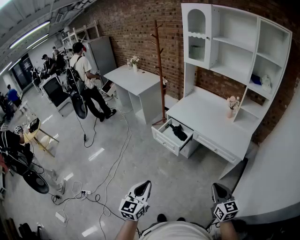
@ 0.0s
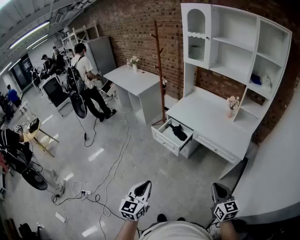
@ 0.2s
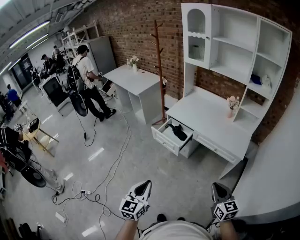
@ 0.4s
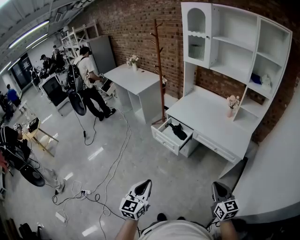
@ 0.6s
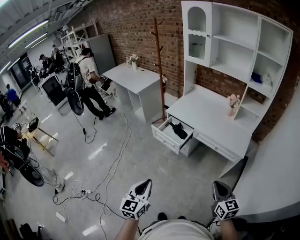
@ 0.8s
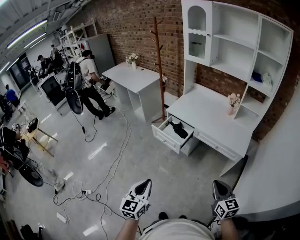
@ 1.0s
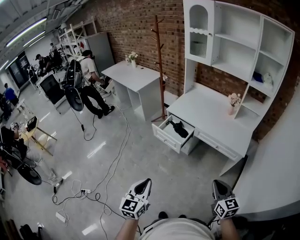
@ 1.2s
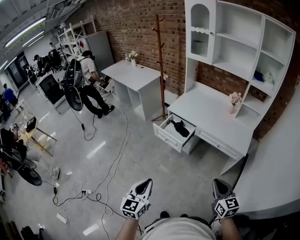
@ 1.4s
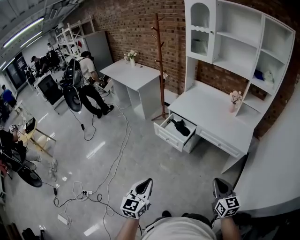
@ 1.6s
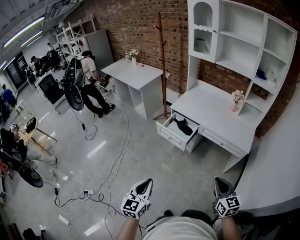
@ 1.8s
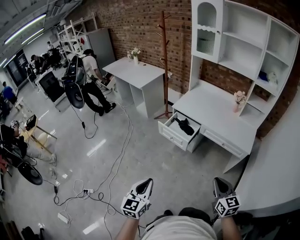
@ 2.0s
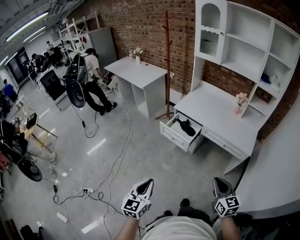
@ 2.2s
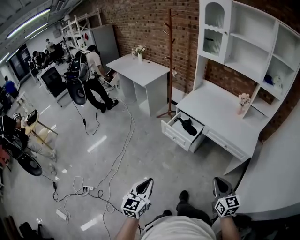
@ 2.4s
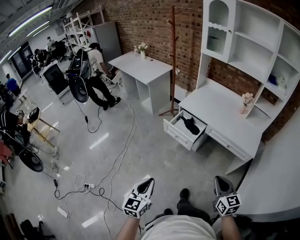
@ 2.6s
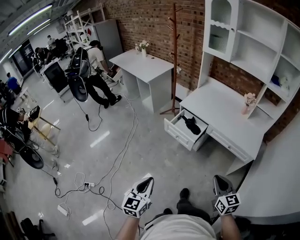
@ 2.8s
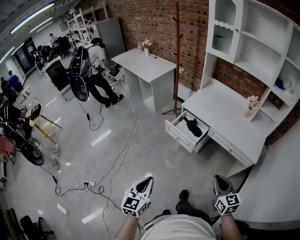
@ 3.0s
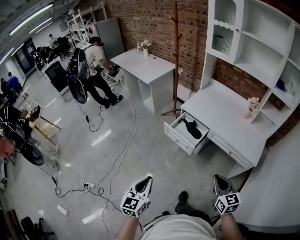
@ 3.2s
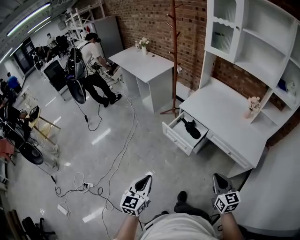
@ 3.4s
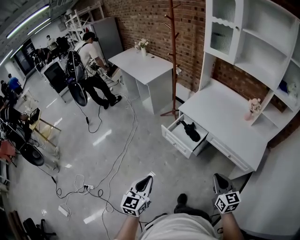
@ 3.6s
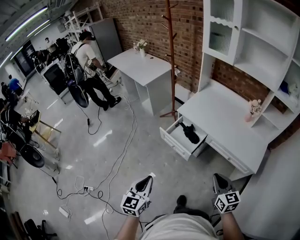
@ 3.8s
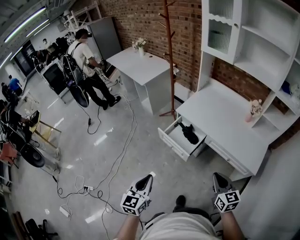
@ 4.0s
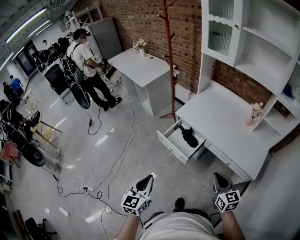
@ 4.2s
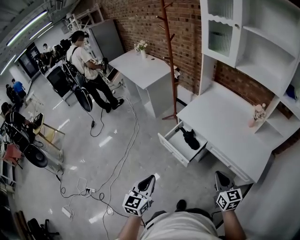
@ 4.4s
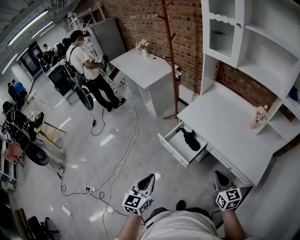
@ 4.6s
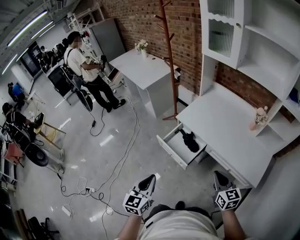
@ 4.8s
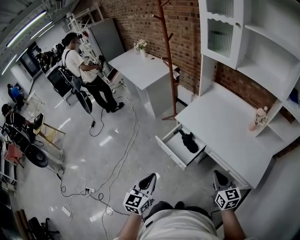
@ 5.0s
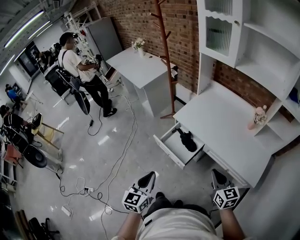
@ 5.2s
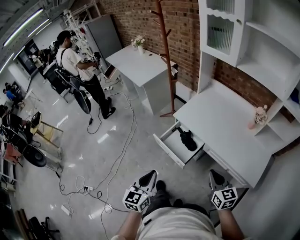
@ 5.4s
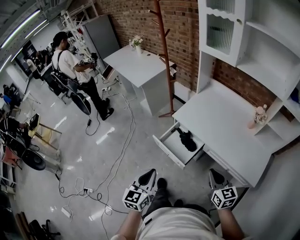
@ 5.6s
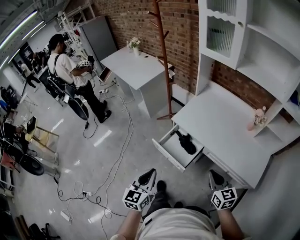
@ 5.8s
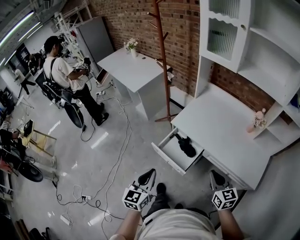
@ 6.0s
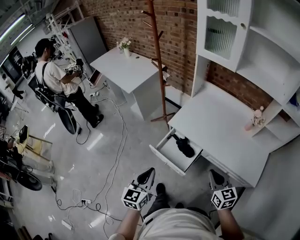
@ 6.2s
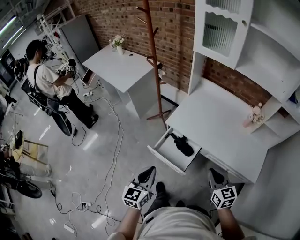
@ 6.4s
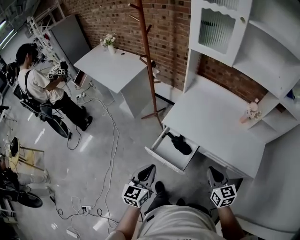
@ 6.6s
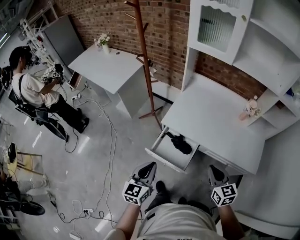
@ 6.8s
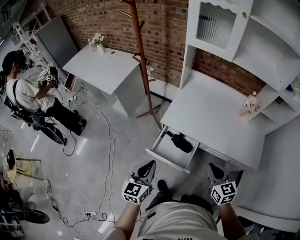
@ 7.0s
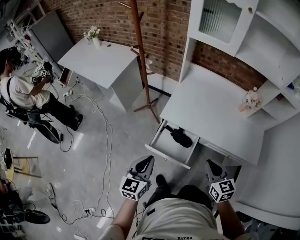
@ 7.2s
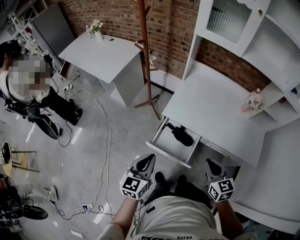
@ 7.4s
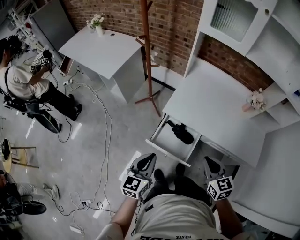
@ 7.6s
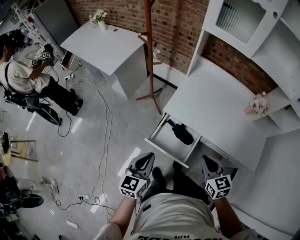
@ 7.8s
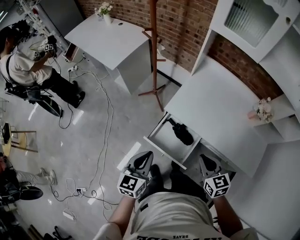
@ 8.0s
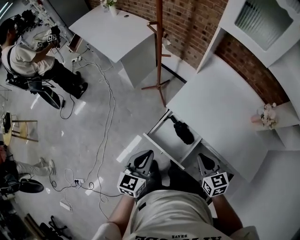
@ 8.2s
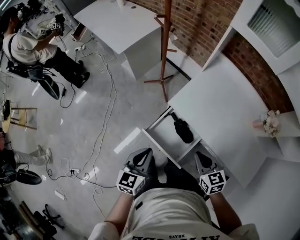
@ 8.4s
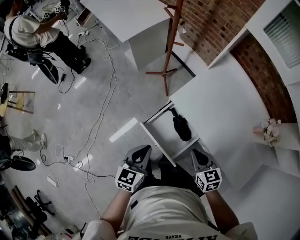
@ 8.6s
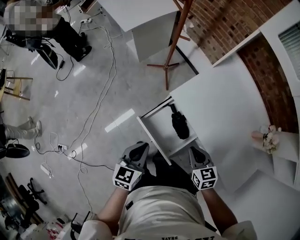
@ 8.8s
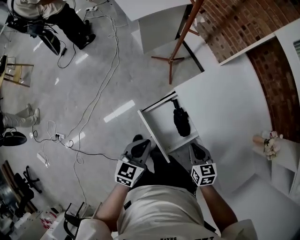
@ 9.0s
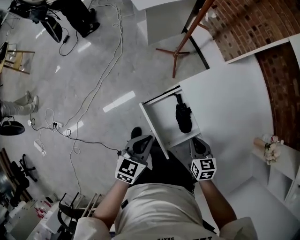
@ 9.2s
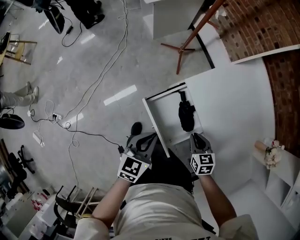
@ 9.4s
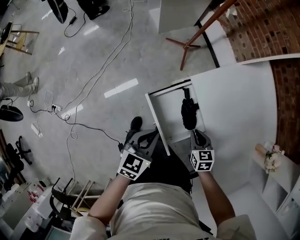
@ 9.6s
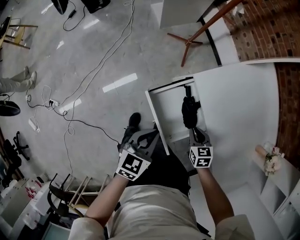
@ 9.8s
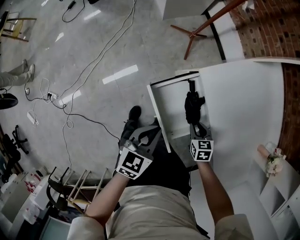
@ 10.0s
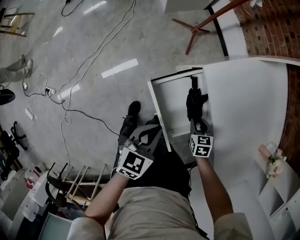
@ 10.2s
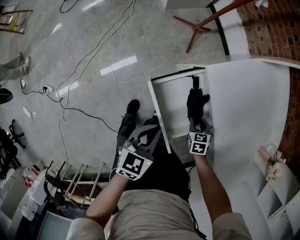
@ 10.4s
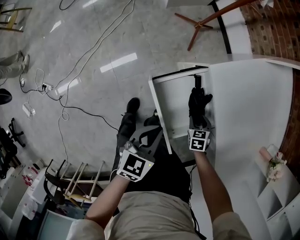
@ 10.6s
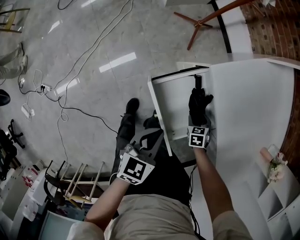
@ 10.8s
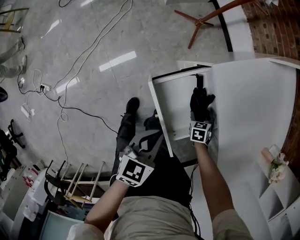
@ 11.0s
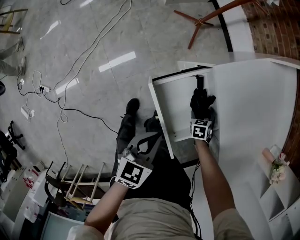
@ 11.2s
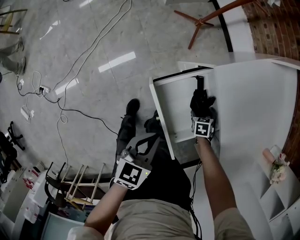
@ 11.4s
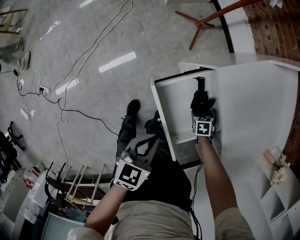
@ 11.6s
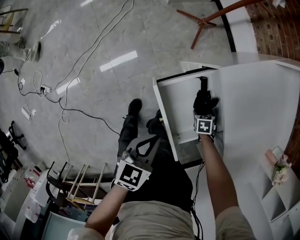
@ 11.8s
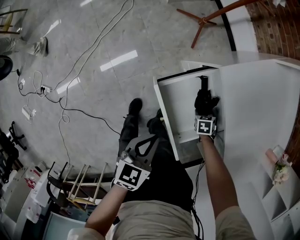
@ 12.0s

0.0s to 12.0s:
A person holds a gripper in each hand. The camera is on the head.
0.0s to 1.6s: The two grippers go roughly 5 cm to the left.
1.6s to 3.0s: The left gripper is displaced to the left by about 5 cm. The right gripper travels forward and to the left by approximately 10 cm.
3.0s to 4.4s: The two grippers go some 20 cm forward and to the right.
4.4s to 6.0s: Both grippers travel together forward, approximately 10 cm.
6.0s to 7.6s: The left gripper goes about 15 cm forward and to the left, while the right gripper is displaced to the left and forward by some 15 cm.
7.6s to 9.0s: The grippers both shift downward by approximately 15 cm. The left gripper rotates roughly 30 degrees, while the right gripper rotates some 30 degrees.
9.0s to 10.4s: The left gripper shifts some 10 cm downward, while the right gripper moves downward, roughly 25 cm, and swivels about 20 degrees.
10.4s to 12.0s: The left gripper shifts by approximately 5 cm. The right gripper travels downward by some 10 cm, and opens.

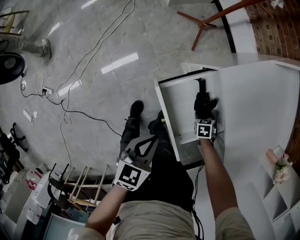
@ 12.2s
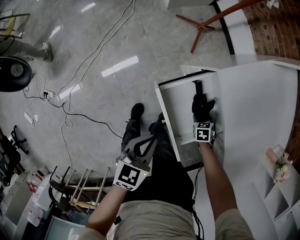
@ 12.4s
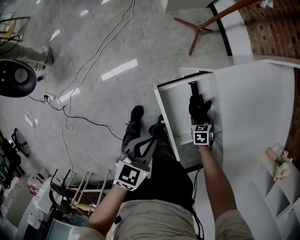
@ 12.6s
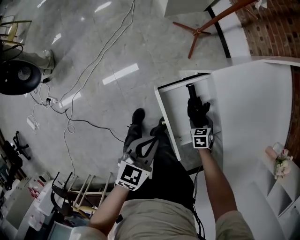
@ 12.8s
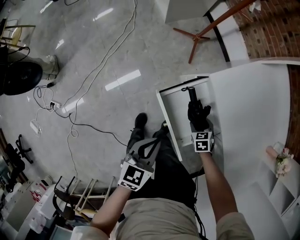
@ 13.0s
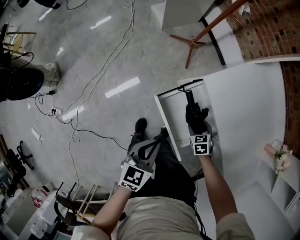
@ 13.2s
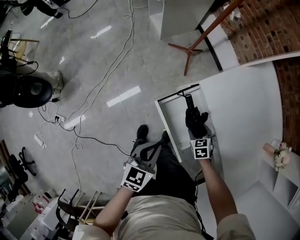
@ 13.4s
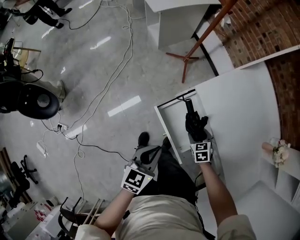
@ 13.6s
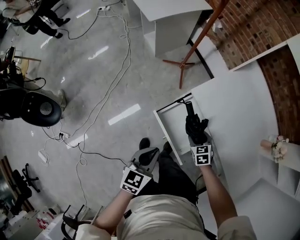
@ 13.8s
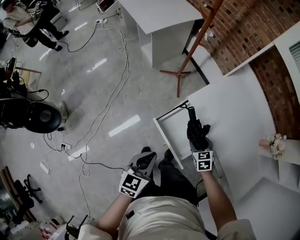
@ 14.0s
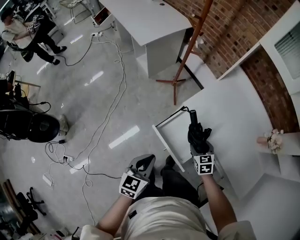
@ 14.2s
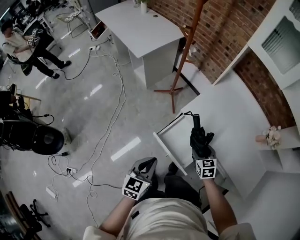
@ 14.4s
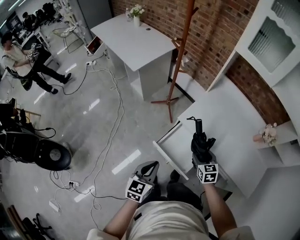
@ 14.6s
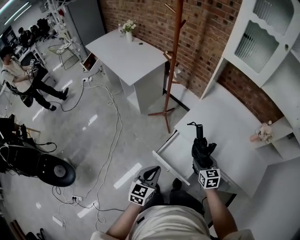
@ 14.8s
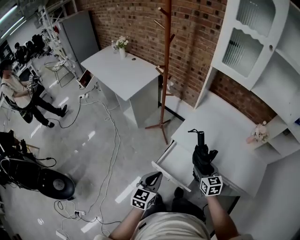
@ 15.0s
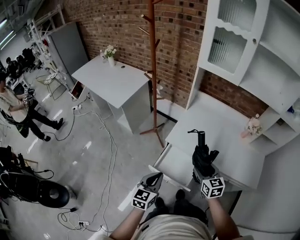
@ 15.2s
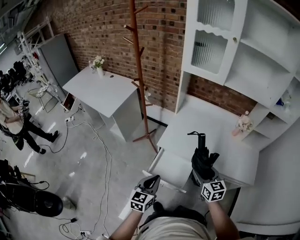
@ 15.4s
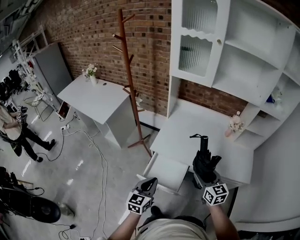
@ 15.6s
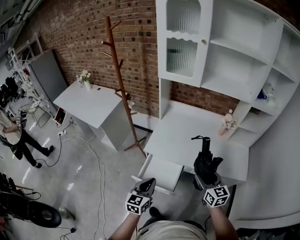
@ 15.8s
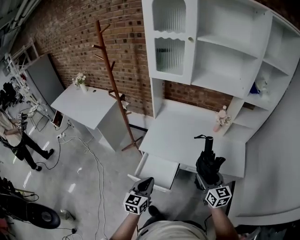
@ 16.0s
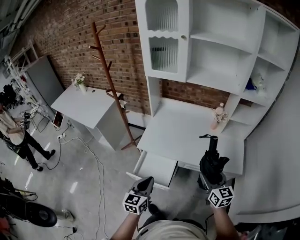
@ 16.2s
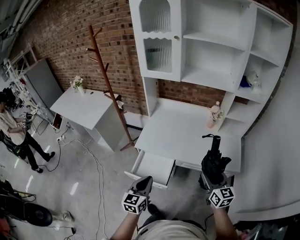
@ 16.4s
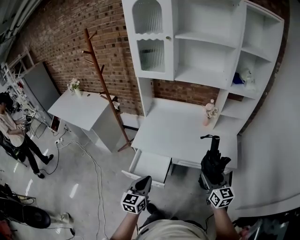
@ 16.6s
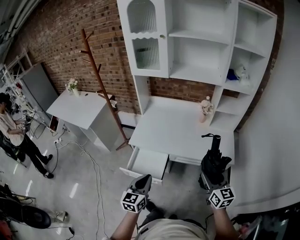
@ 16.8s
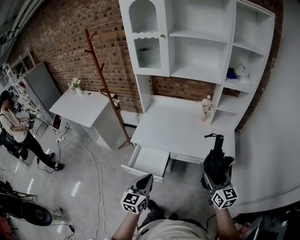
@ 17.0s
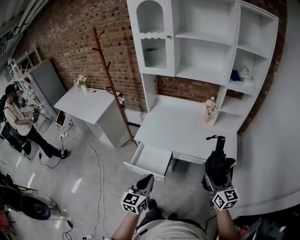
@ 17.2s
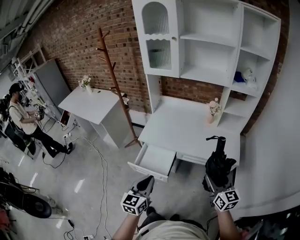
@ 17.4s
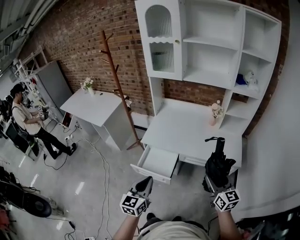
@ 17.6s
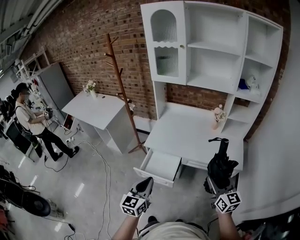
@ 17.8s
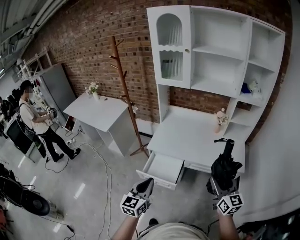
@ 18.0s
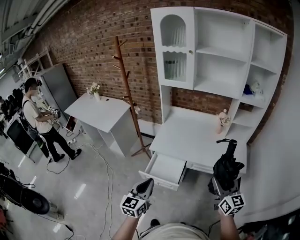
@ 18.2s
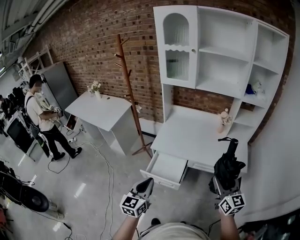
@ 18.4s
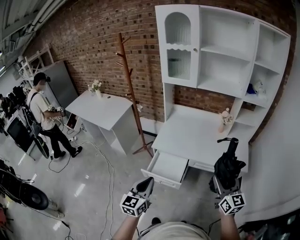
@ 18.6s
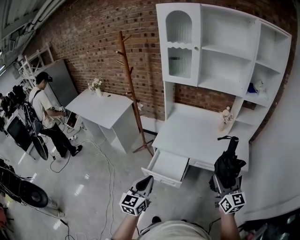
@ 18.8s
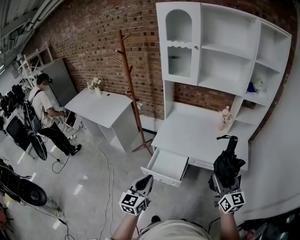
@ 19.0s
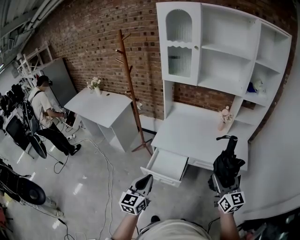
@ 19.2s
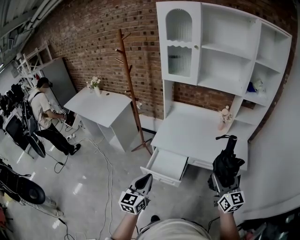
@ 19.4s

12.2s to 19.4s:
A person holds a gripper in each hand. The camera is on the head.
12.2s to 13.6s: The left gripper shifts roughly 10 cm upward, while the right gripper travels upward by some 20 cm, and rotates some 20 degrees.
13.6s to 15.0s: The left gripper moves upward, some 10 cm, and swivels some 20 degrees. The right gripper moves upward, some 25 cm, and changes its angle by approximately 40 degrees.
15.0s to 16.6s: The right gripper moves to the right, backward and upward, approximately 35 cm, and turns by approximately 30 degrees. Meanwhile the left gripper heads to the right, covering about 20 cm.
16.6s to 18.0s: The right gripper shifts about 10 cm backward and upward. Meanwhile the left gripper heads backward, upward and to the left, covering about 10 cm.
18.0s to 19.4s: The left gripper heads to the left, covering approximately 5 cm.

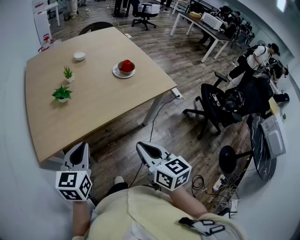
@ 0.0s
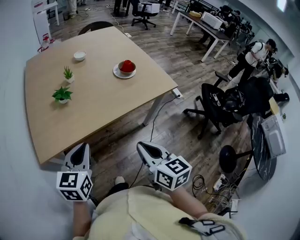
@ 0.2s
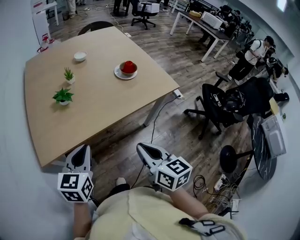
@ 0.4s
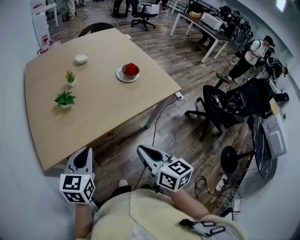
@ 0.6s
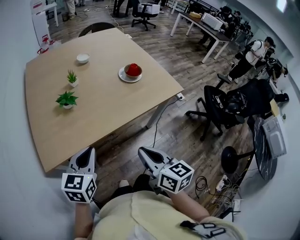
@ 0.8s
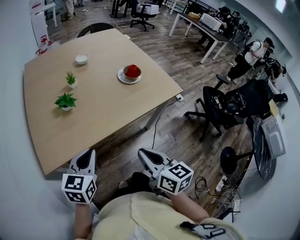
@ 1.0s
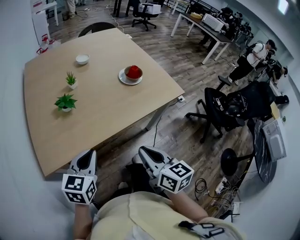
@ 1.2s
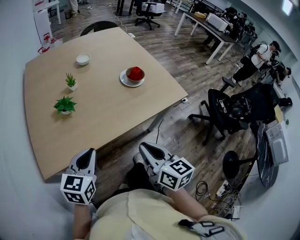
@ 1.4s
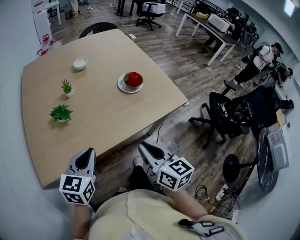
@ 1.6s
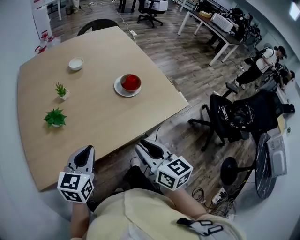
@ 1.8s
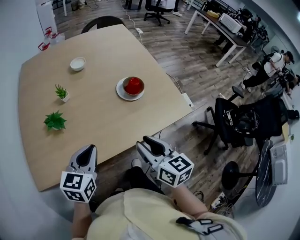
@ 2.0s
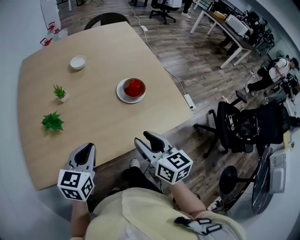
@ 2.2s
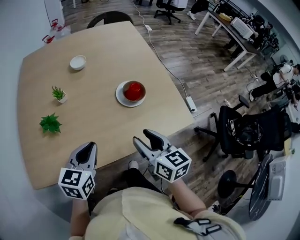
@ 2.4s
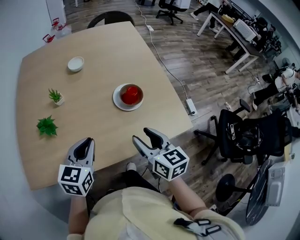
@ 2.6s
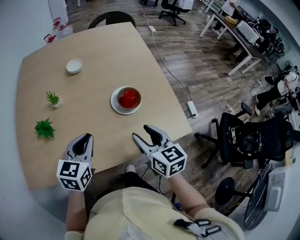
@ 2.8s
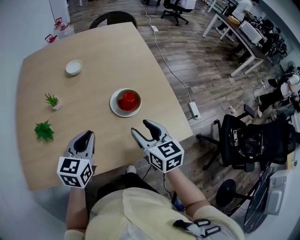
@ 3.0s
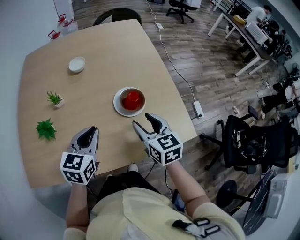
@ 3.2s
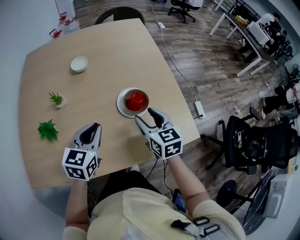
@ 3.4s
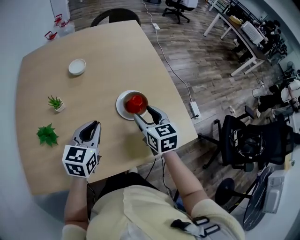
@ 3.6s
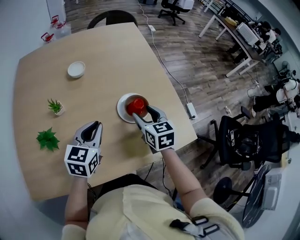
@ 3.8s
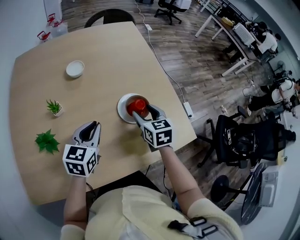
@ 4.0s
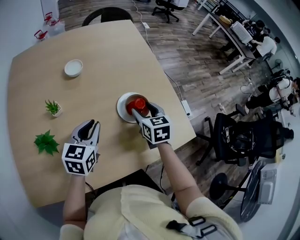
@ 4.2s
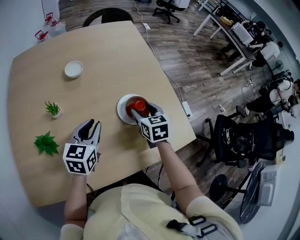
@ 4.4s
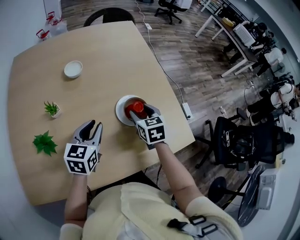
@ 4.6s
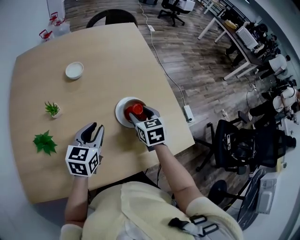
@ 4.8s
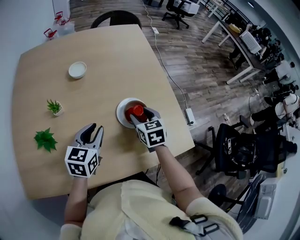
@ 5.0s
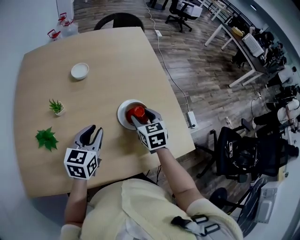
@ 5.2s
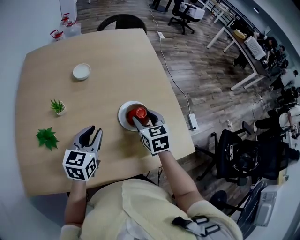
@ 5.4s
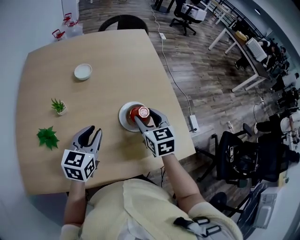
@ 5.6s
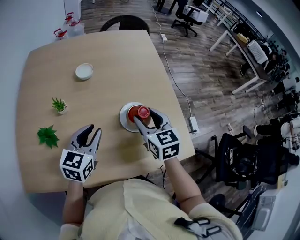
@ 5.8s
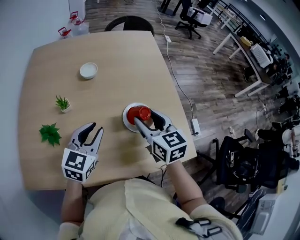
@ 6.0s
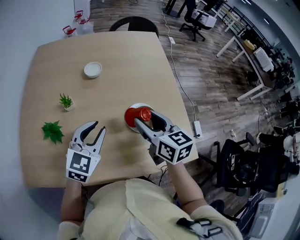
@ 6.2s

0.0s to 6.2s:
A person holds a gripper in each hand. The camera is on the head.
0.0s to 1.6s: The grippers both shift forward by about 15 cm.
1.6s to 3.2s: Both grippers travel together forward and to the right, some 30 cm. The right gripper opens up.
3.2s to 4.6s: The left gripper moves forward, some 10 cm. Meanwhile the right gripper moves forward and downward, about 10 cm.
4.6s to 6.2s: The right gripper goes approximately 15 cm upward, and rotates roughly 30 degrees. The left gripper shifts about 5 cm upward, and rotates approximately 20 degrees.
